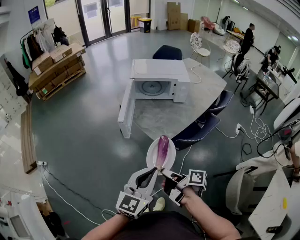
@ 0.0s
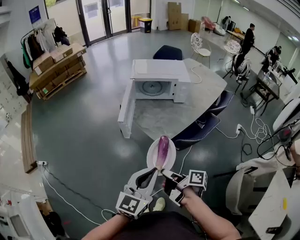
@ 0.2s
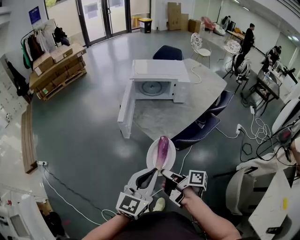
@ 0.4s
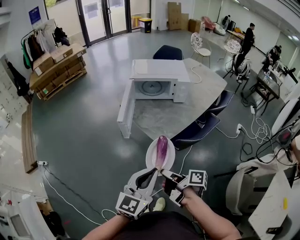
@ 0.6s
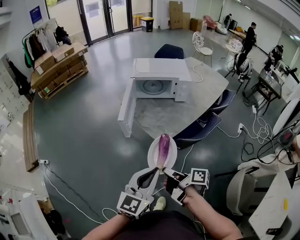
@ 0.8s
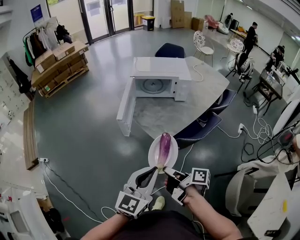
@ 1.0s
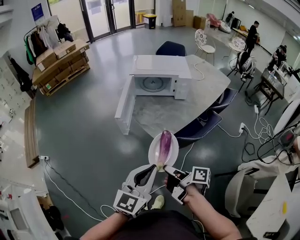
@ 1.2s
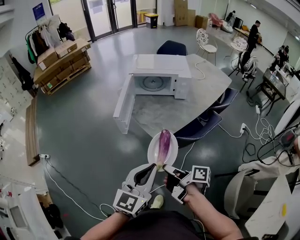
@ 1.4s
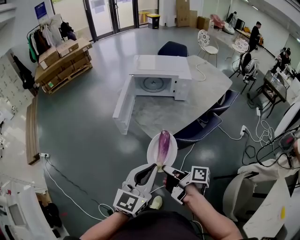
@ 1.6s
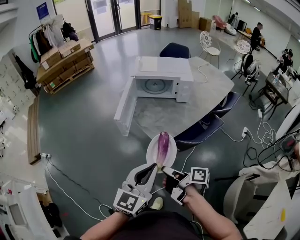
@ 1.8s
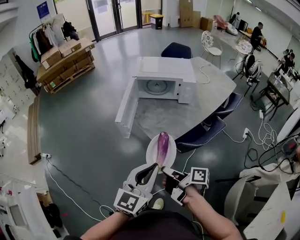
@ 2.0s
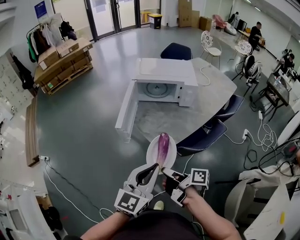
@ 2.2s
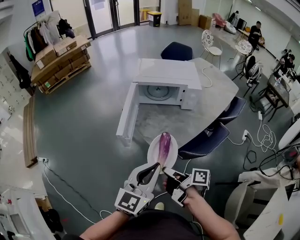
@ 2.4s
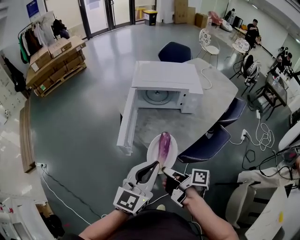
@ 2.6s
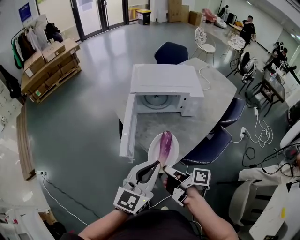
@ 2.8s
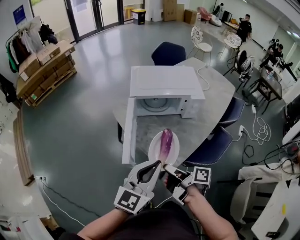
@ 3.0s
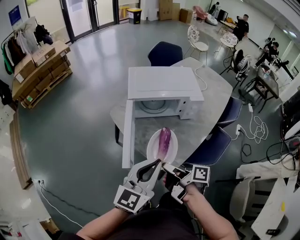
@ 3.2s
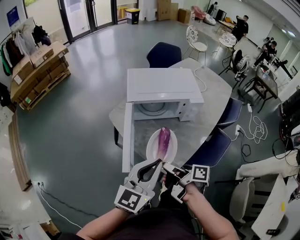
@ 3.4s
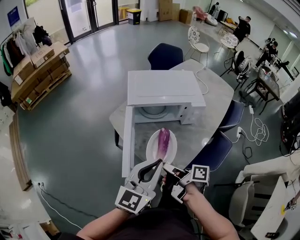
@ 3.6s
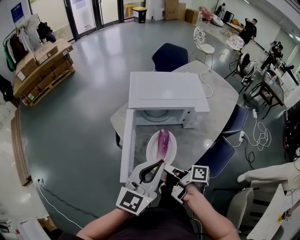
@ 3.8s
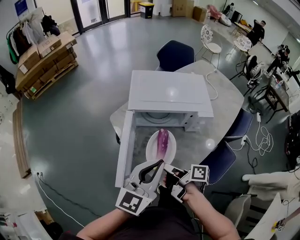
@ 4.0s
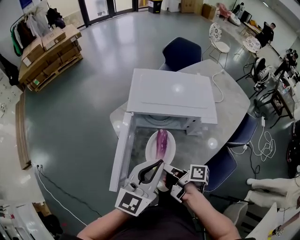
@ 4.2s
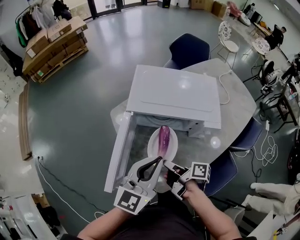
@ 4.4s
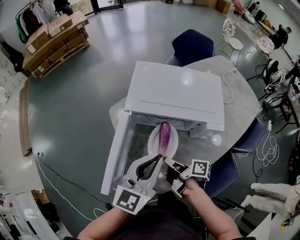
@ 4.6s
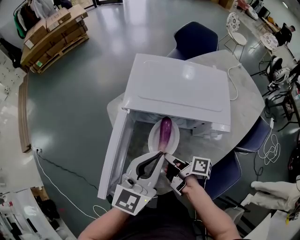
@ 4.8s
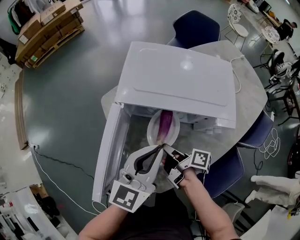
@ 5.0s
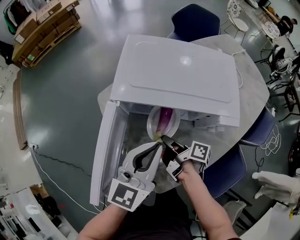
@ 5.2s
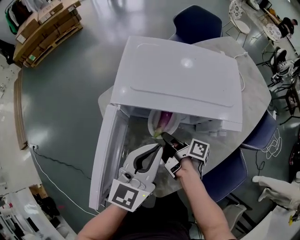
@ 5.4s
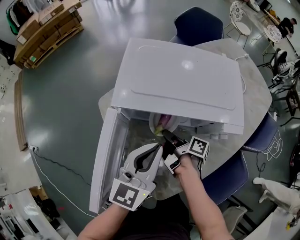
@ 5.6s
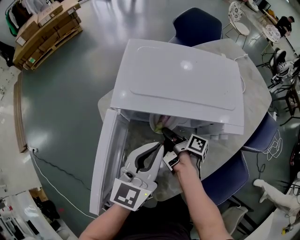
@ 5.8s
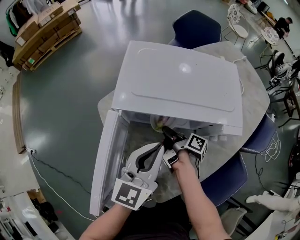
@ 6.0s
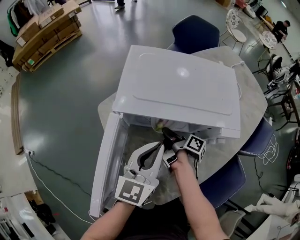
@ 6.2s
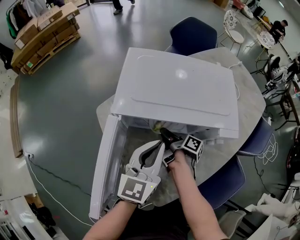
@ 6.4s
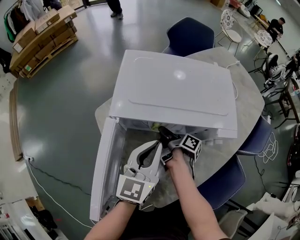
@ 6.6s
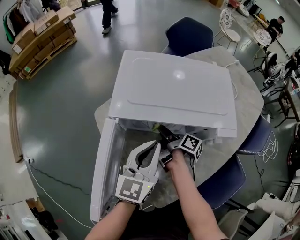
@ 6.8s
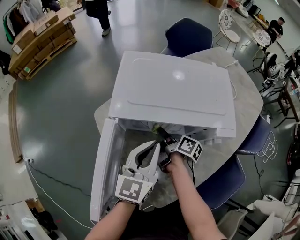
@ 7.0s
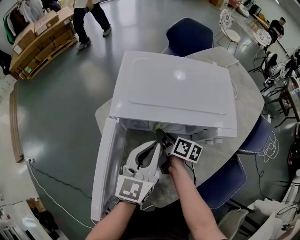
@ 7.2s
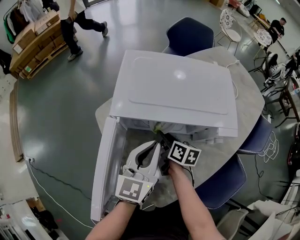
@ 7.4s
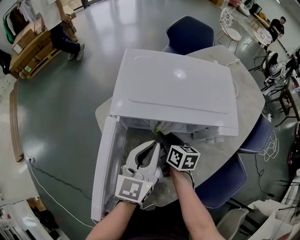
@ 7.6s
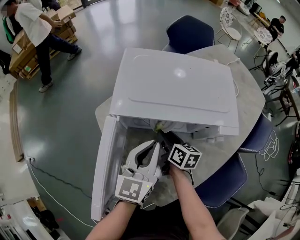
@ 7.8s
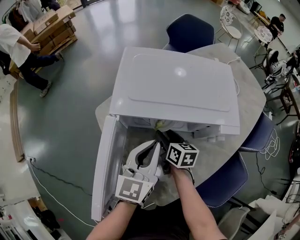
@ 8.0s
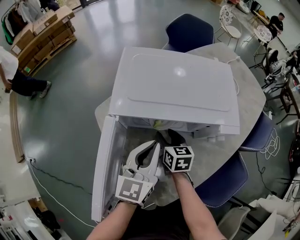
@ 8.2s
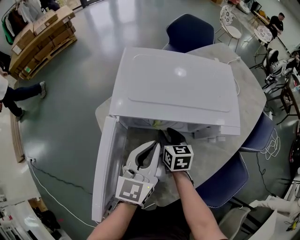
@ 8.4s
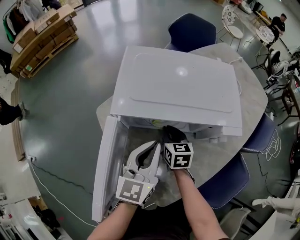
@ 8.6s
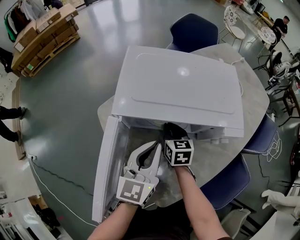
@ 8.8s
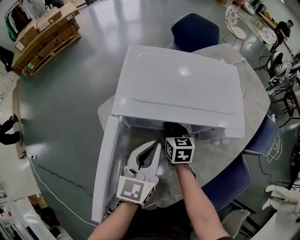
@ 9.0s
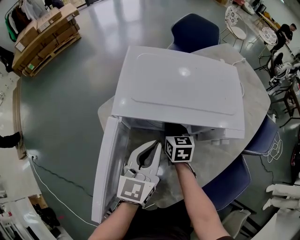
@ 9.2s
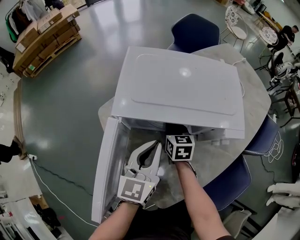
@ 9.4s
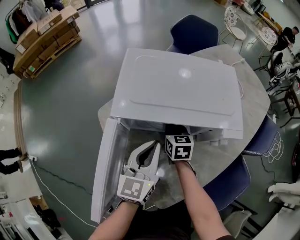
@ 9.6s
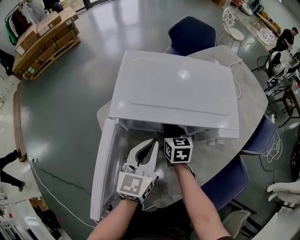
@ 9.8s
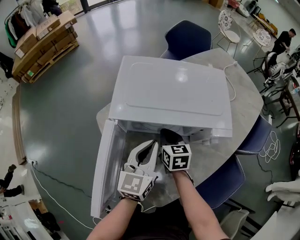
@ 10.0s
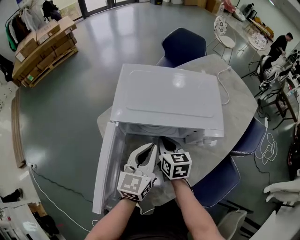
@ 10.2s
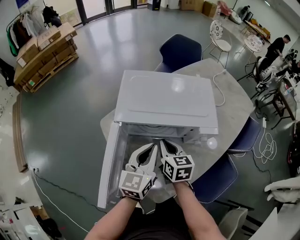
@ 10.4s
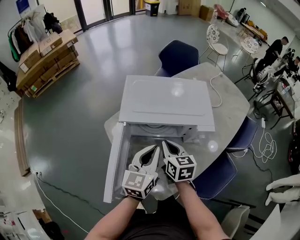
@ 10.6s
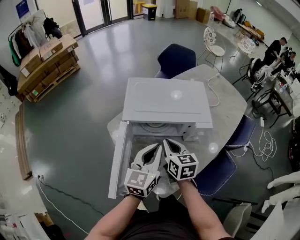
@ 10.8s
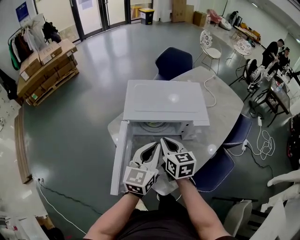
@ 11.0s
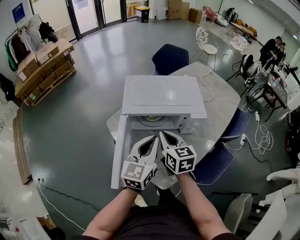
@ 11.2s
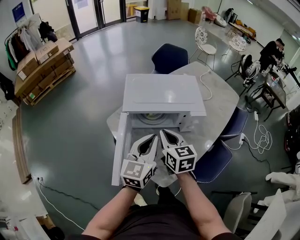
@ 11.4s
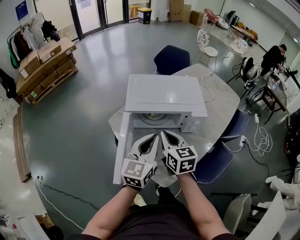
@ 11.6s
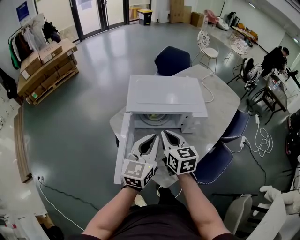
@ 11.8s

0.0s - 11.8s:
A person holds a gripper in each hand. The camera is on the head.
0.0s - 1.4s: The grippers stay close to where they were, moving slightly.
1.4s - 3.0s: Both grippers travel together forward, some 25 cm.
3.0s - 4.4s: The grippers both shift forward by about 20 cm.
4.4s - 6.0s: The left gripper heads downward and forward, covering about 15 cm. Meanwhile the right gripper is displaced forward and downward by approximately 25 cm.
6.0s - 7.4s: The right gripper rolls counterclockwise, seen from behind, by approximately 40 degrees, and opens up.
7.4s - 8.8s: The right gripper swivels roughly 30 degrees.
8.8s - 10.4s: The left gripper travels upward by approximately 5 cm, while the right gripper travels upward and backward by some 15 cm.
10.4s - 11.8s: The right gripper travels upward and backward by about 15 cm, while the left gripper heads backward and upward, covering some 15 cm.

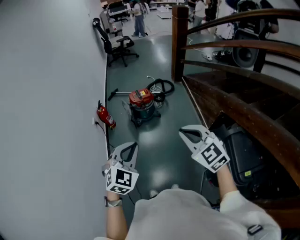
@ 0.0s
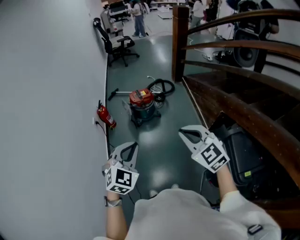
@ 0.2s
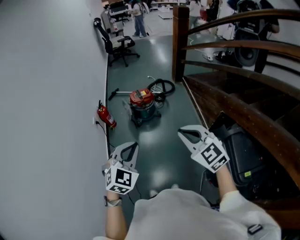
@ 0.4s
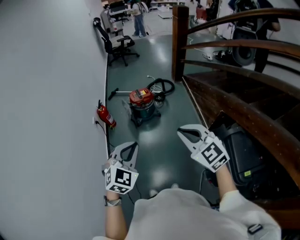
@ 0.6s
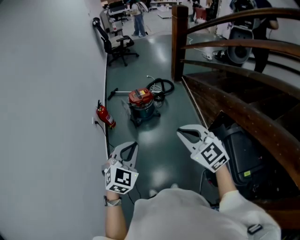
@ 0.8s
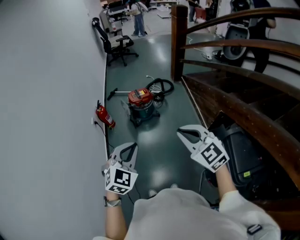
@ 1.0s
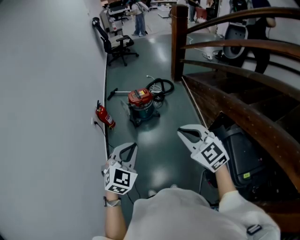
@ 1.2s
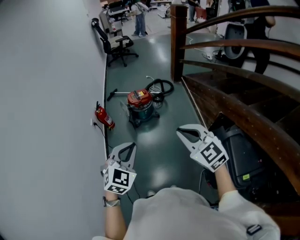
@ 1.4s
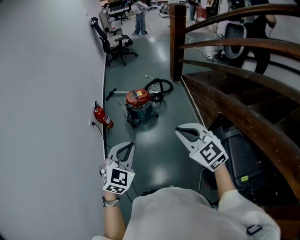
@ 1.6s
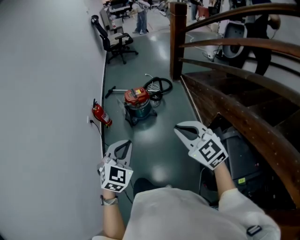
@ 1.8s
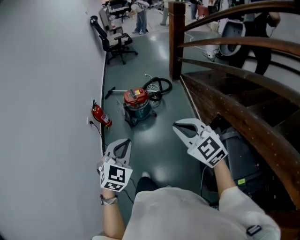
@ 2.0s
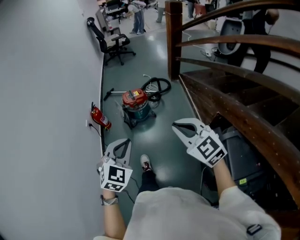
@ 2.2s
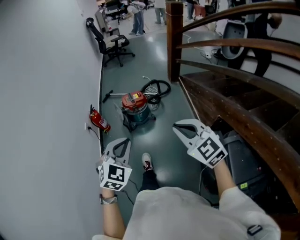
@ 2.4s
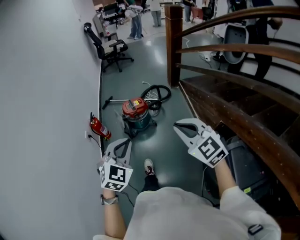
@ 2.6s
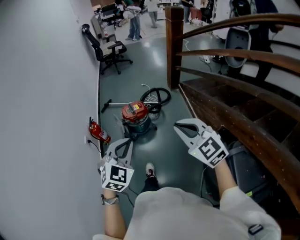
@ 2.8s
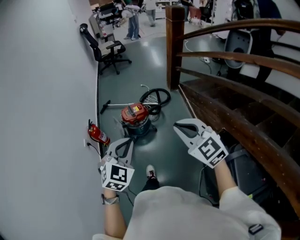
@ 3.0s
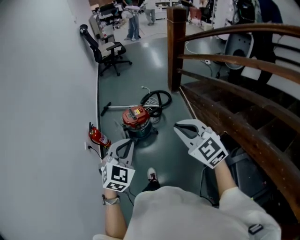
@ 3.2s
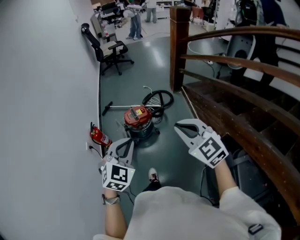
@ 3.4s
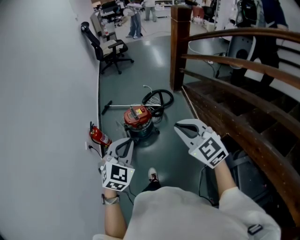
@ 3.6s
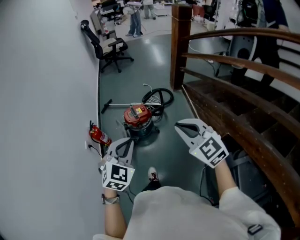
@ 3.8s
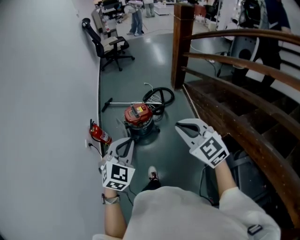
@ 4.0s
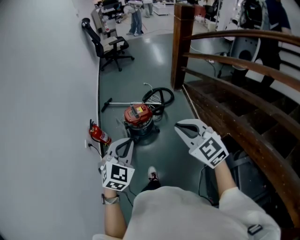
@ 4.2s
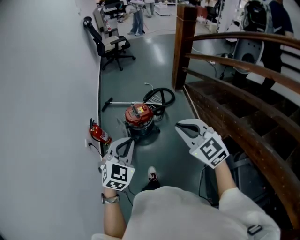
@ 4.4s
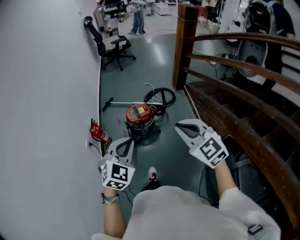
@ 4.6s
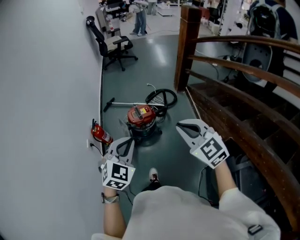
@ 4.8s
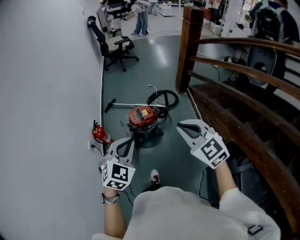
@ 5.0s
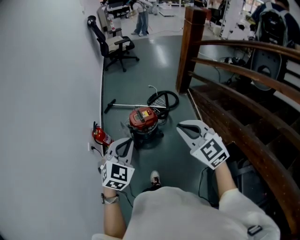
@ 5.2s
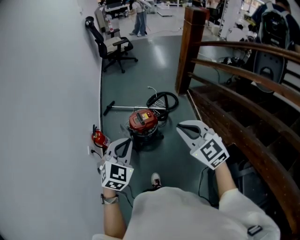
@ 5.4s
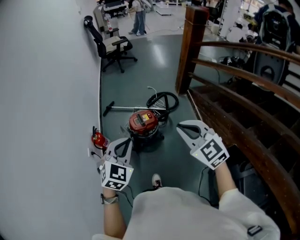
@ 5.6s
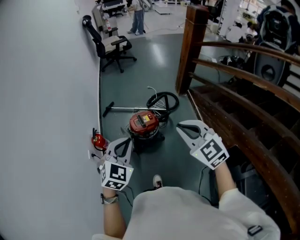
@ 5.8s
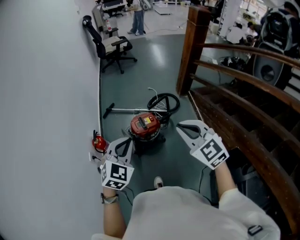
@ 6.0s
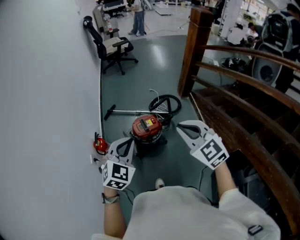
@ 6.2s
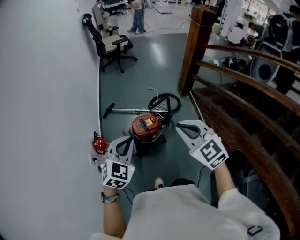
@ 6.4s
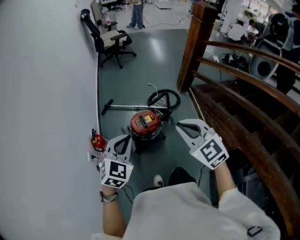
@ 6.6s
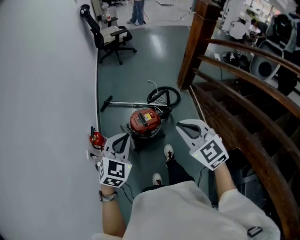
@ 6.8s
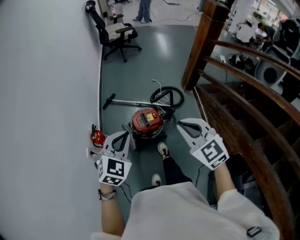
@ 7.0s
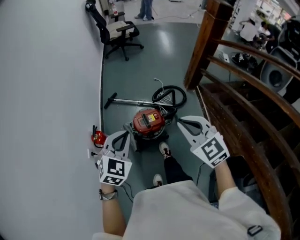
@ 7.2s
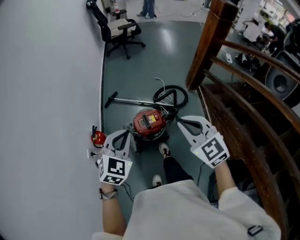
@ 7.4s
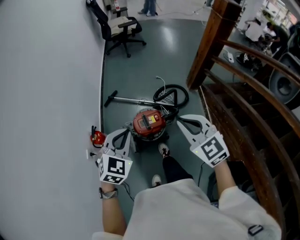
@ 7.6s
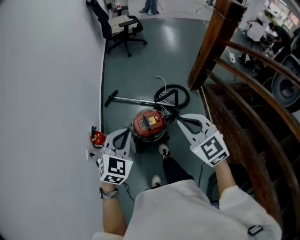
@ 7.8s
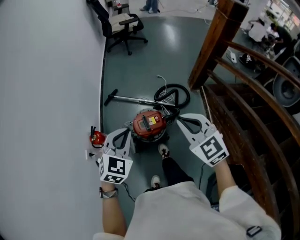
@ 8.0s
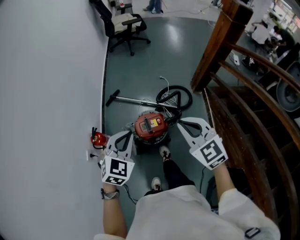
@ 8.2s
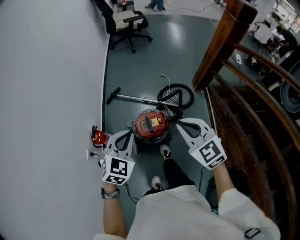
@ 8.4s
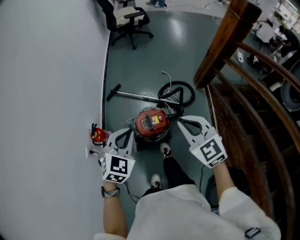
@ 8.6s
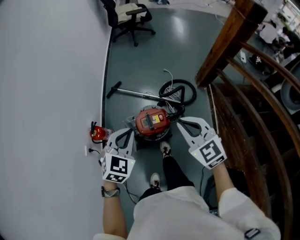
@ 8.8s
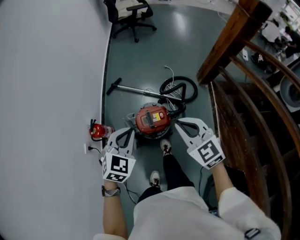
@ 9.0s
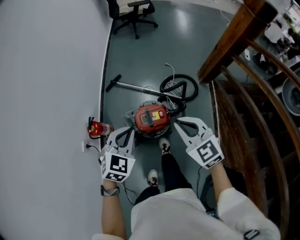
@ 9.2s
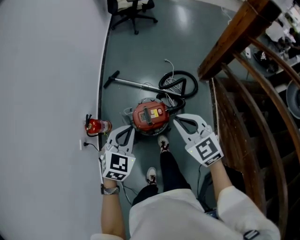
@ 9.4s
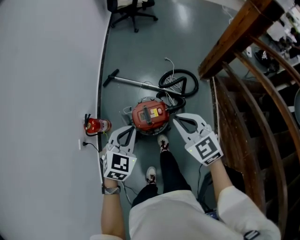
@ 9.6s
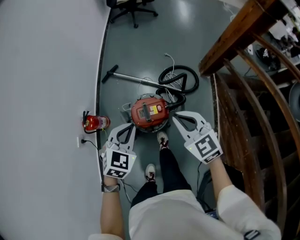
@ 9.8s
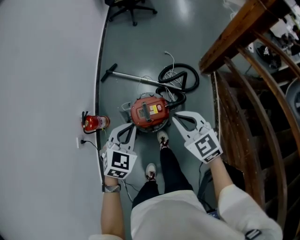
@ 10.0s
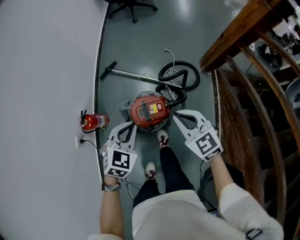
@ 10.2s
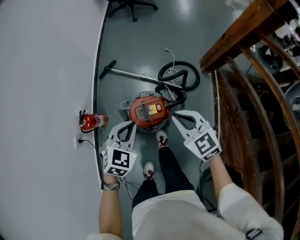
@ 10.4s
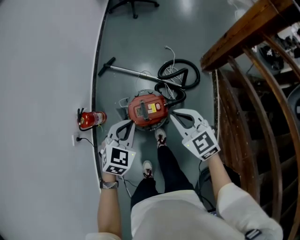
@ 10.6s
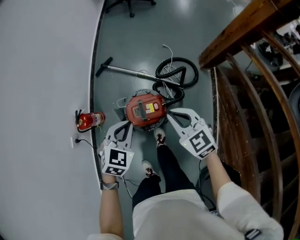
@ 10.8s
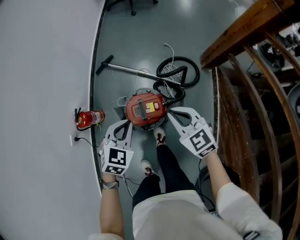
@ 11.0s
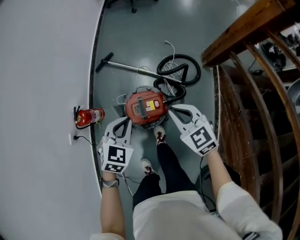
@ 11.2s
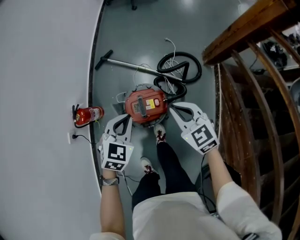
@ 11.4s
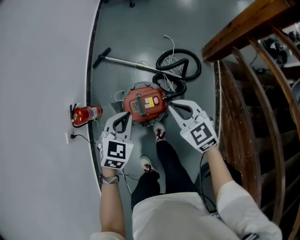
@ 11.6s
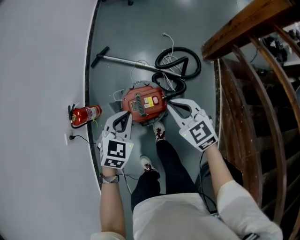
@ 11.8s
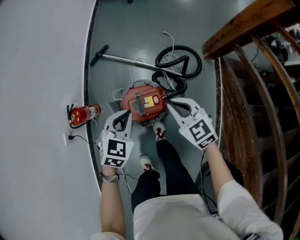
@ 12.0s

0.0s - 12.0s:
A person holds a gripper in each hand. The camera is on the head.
0.0s - 1.6s: The grippers move only a little.
1.6s - 3.0s: The grippers both shift forward by some 20 cm.
3.0s - 4.4s: The grippers both shift forward by roughly 5 cm.
4.4s - 6.0s: The right gripper shifts some 15 cm forward, while the left gripper goes roughly 15 cm forward and to the left.
6.0s - 7.6s: The grippers both shift forward by roughly 15 cm.
7.6s - 9.0s: The grippers both shift downward and forward by some 10 cm.
9.0s - 10.4s: The right gripper moves downward and forward, approximately 15 cm, while the left gripper shifts roughly 10 cm downward.
10.4s - 12.0s: Both grippers move downward, about 10 cm.
